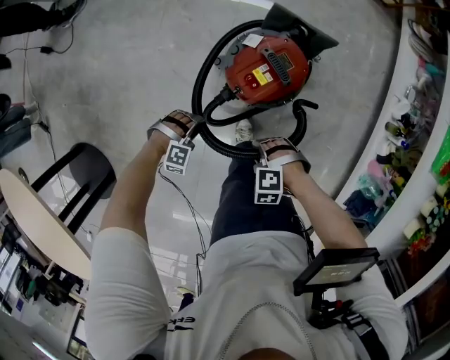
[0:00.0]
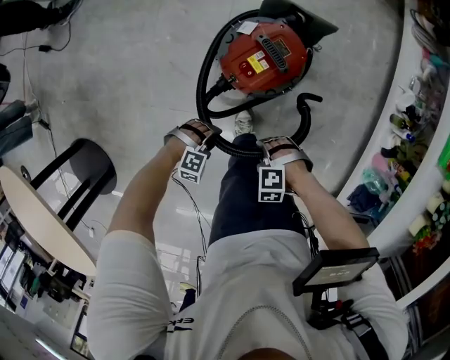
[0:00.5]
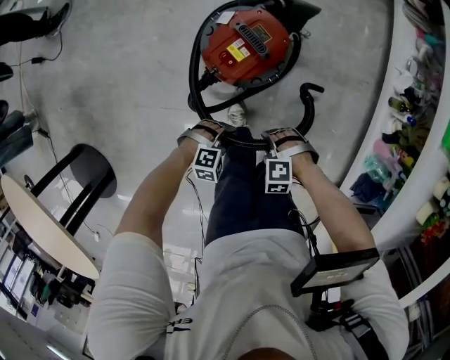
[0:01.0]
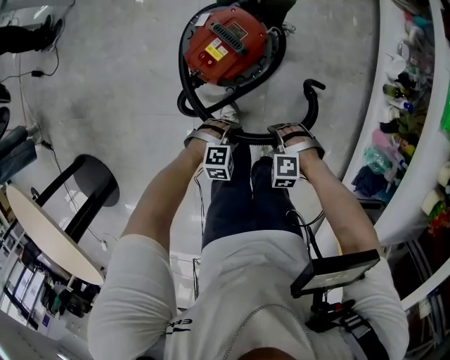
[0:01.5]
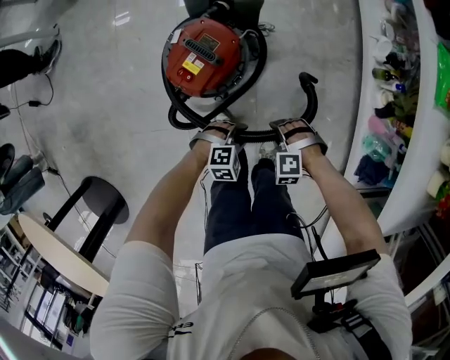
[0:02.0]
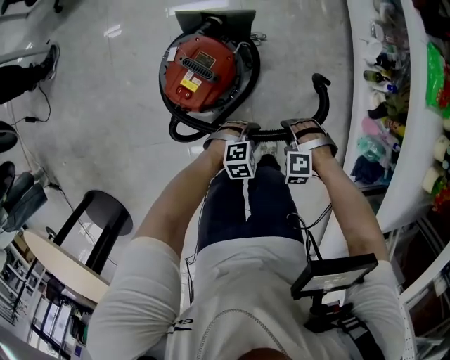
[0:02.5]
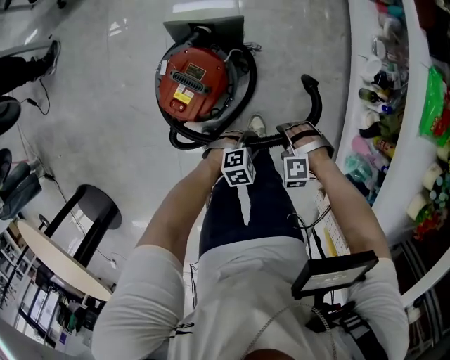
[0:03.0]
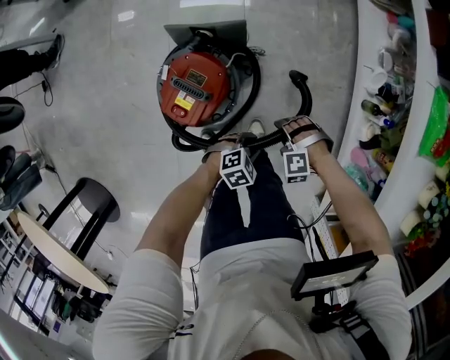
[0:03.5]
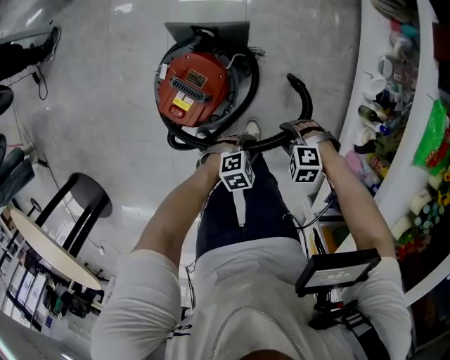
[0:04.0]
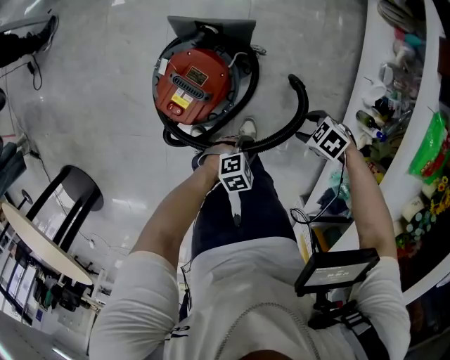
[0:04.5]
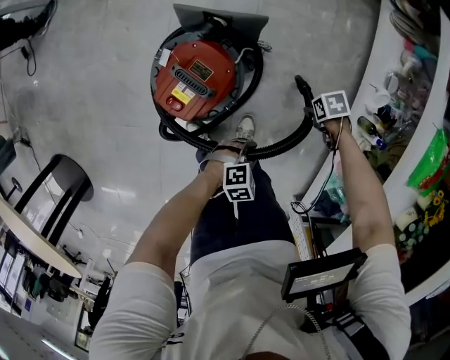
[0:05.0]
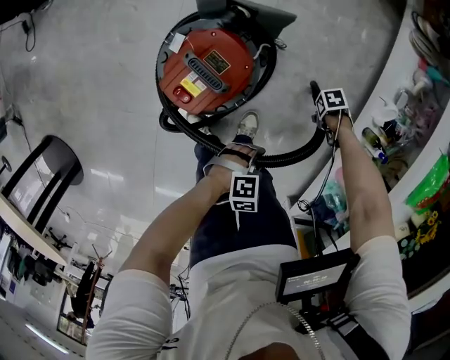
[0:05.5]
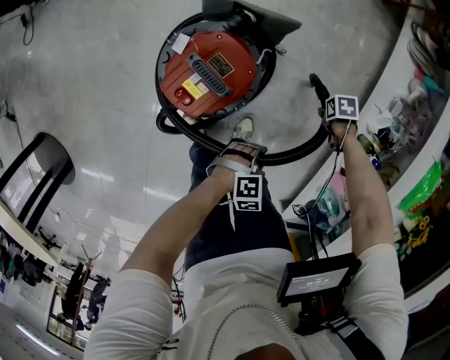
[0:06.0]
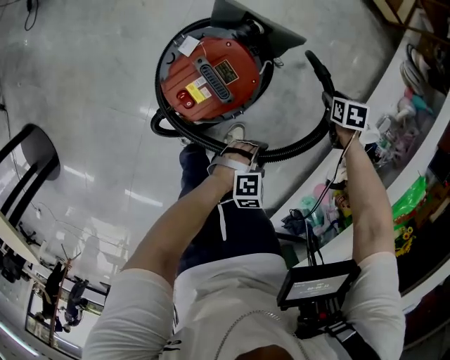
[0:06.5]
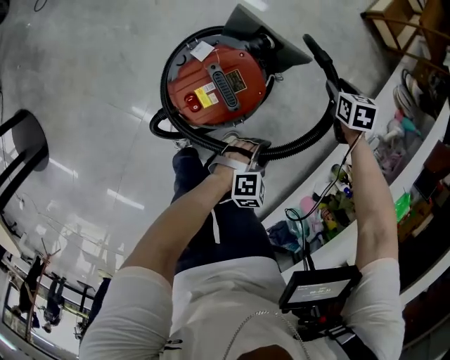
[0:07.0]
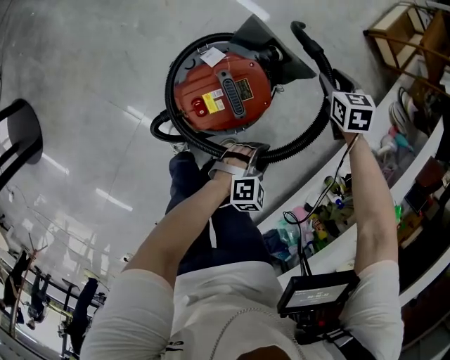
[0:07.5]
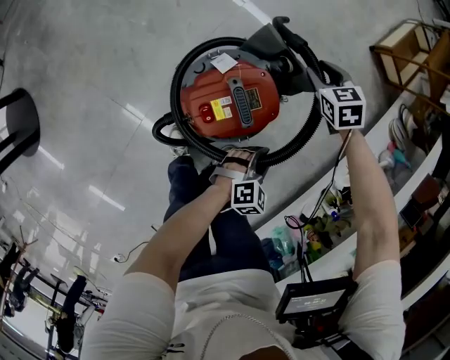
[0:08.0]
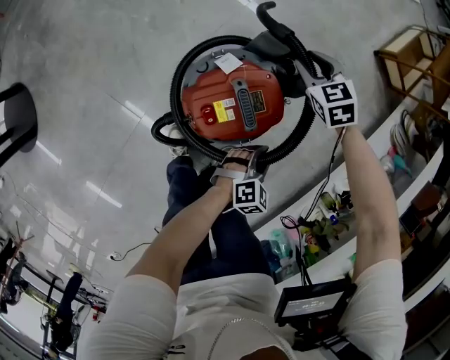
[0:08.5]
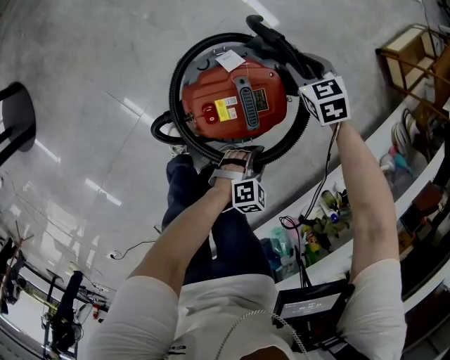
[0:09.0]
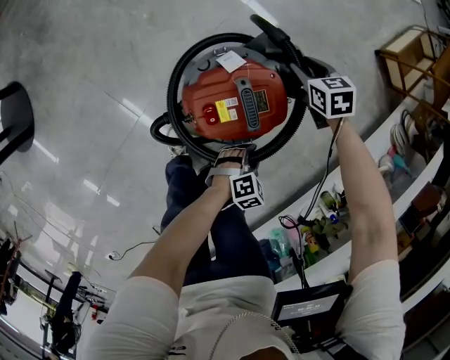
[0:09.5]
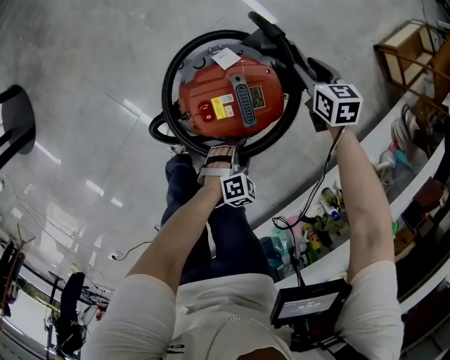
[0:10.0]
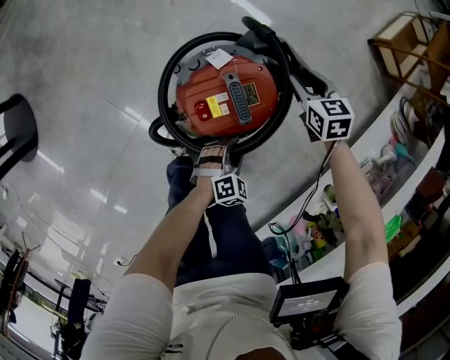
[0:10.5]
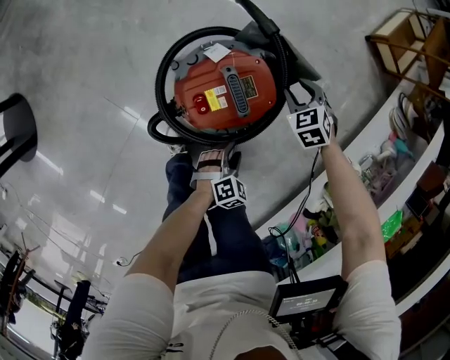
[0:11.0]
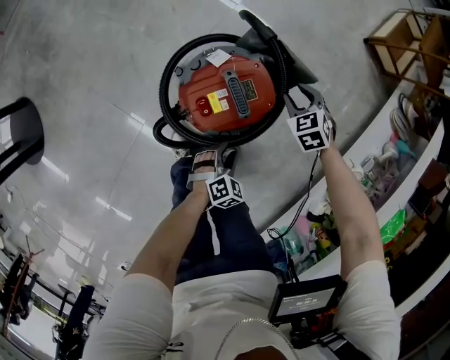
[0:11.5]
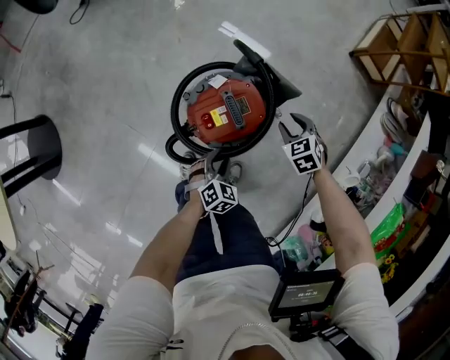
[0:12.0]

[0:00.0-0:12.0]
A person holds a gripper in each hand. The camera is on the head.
0:00.0 to 0:02.0: The right gripper ends up about 20 cm from where it was, while the left gripper changes place by roughly 30 cm, and turns by roughly 20 degrees.
0:02.0 to 0:04.0: The right gripper moves about 20 cm. Meanwhile the left gripper ends up roughly 15 cm from where it was, and turns by roughly 30 degrees.
0:04.0 to 0:06.0: The right gripper moves some 25 cm, and twists some 80 degrees clockwise, seen from behind.
0:06.0 to 0:08.0: The right gripper ends up about 40 cm from where it was, and rotates about 70 degrees. The left gripper ends up approximately 15 cm from where it was, and changes its angle by roughly 40 degrees.
0:08.0 to 0:10.0: The left gripper shifts approximately 10 cm downward and to the left.
0:10.0 to 0:12.0: The left gripper moves upward and to the left, approximately 15 cm. Meanwhile the right gripper moves backward and upward, roughly 15 cm, and swivels approximately 20 degrees.

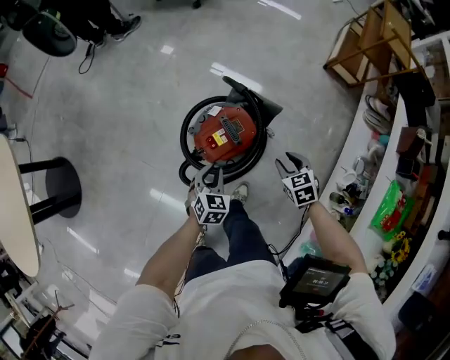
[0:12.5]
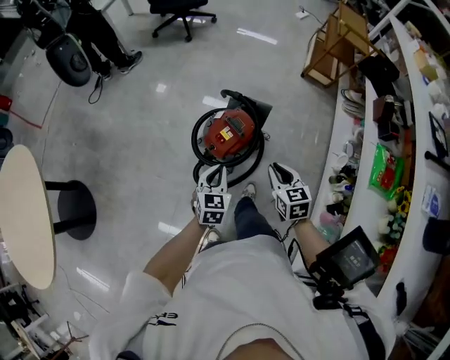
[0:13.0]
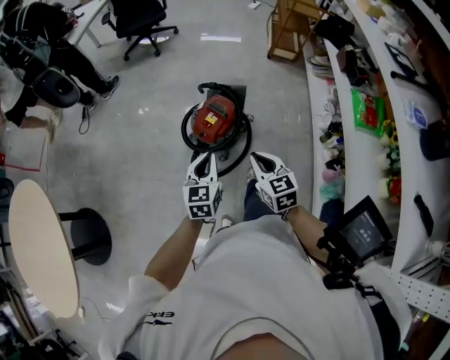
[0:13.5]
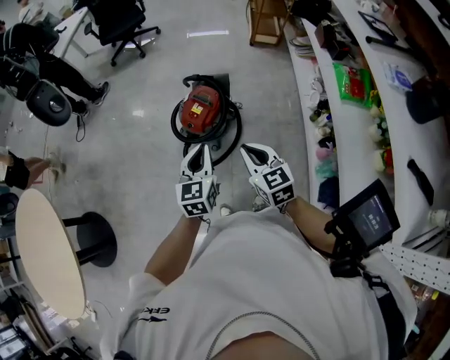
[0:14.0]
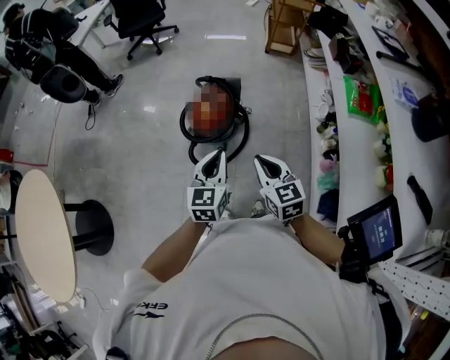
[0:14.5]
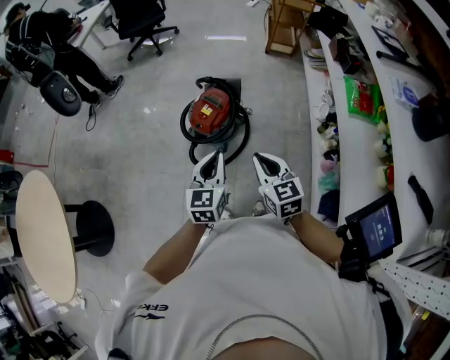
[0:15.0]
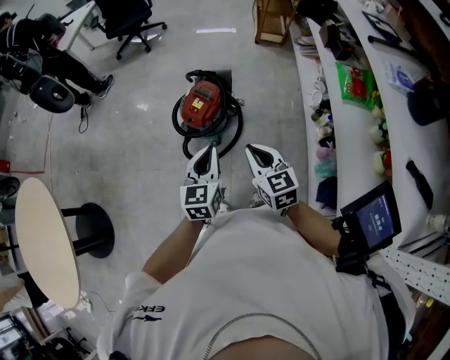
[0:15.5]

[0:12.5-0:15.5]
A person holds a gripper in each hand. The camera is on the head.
0:12.5 to 0:14.0: The left gripper heads upward and backward, covering about 40 cm, and turns by about 30 degrees. Meanwhile the right gripper heads backward and upward, covering approximately 50 cm, angles its fingers upward, by roughly 30 degrees, and closes its fingers.
0:14.0 to 0:15.5: The left gripper moves some 5 cm.

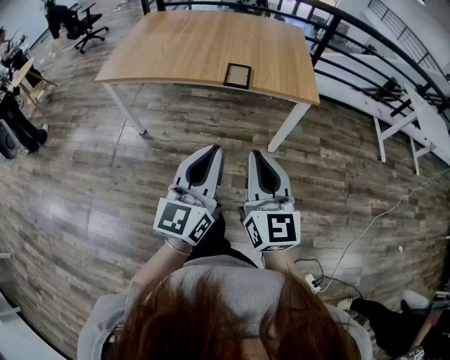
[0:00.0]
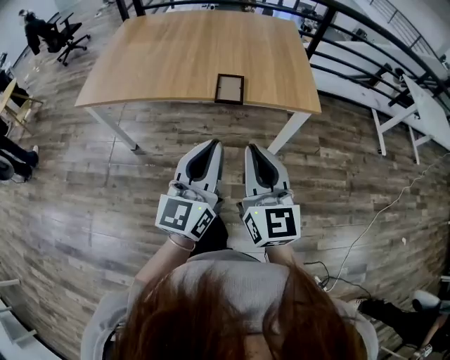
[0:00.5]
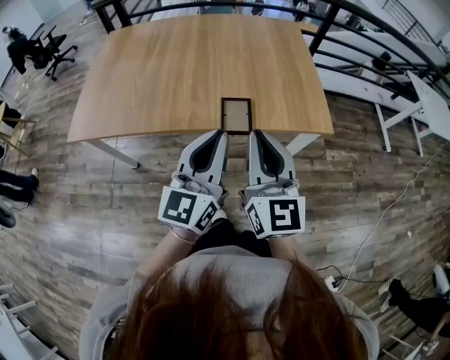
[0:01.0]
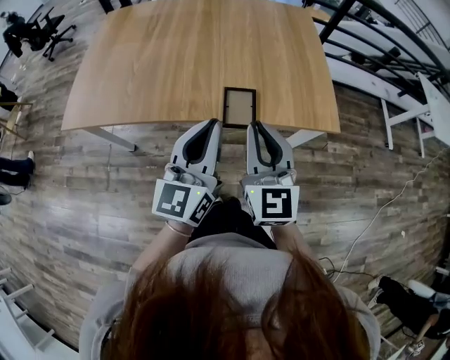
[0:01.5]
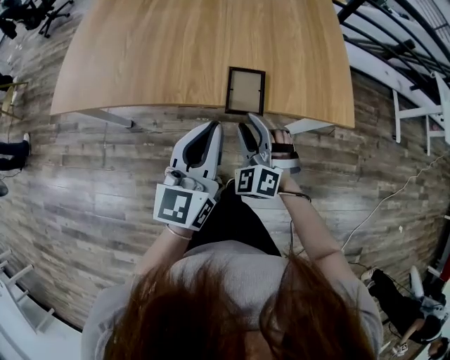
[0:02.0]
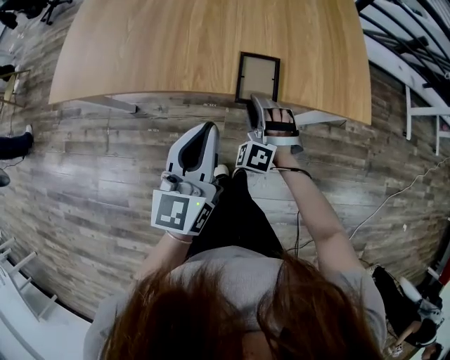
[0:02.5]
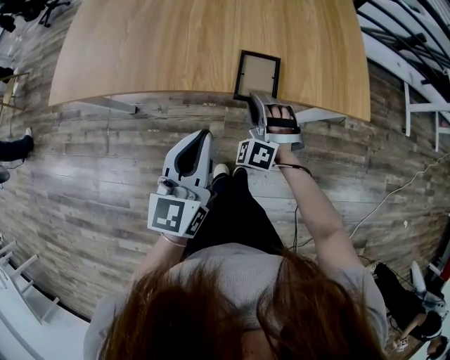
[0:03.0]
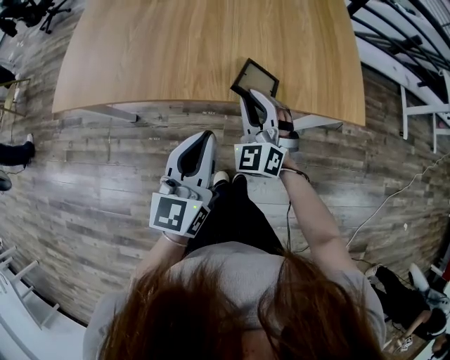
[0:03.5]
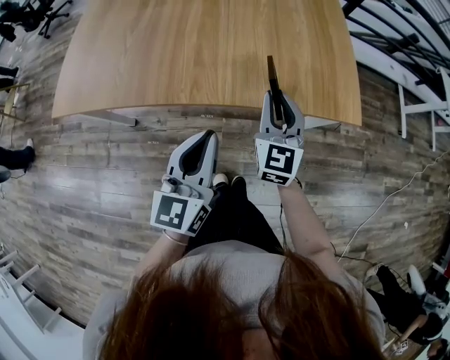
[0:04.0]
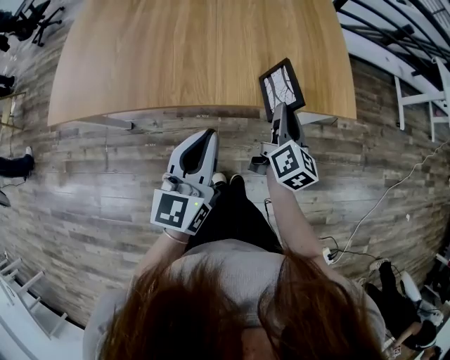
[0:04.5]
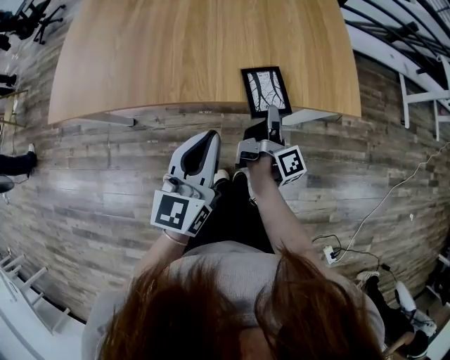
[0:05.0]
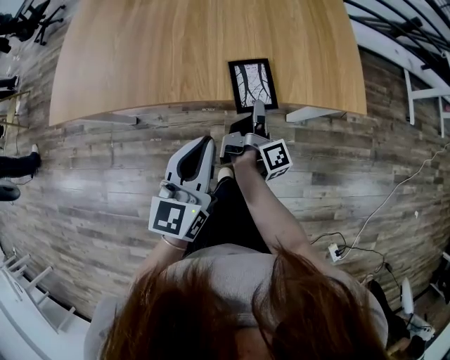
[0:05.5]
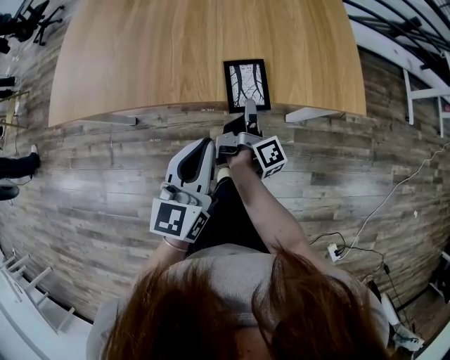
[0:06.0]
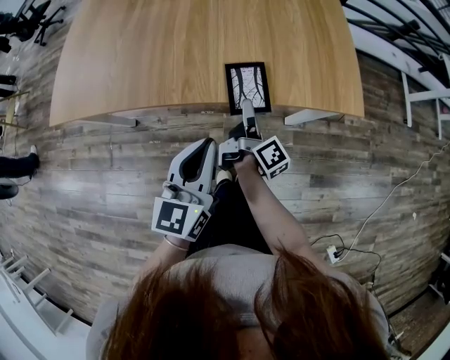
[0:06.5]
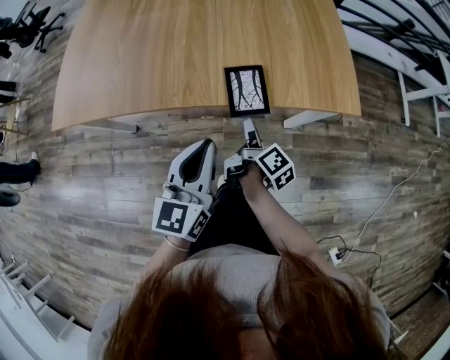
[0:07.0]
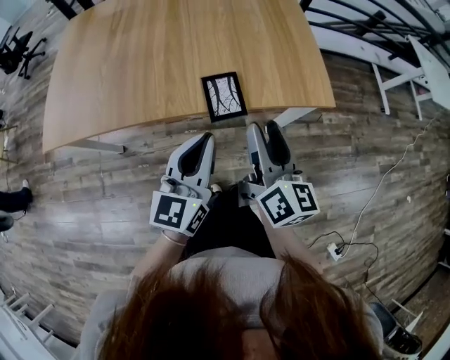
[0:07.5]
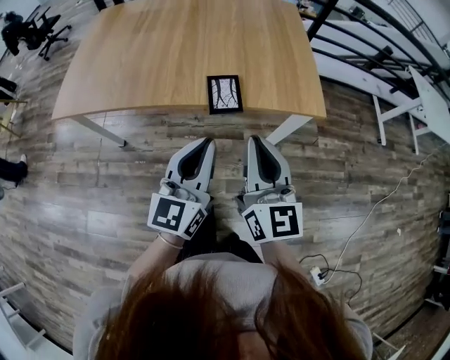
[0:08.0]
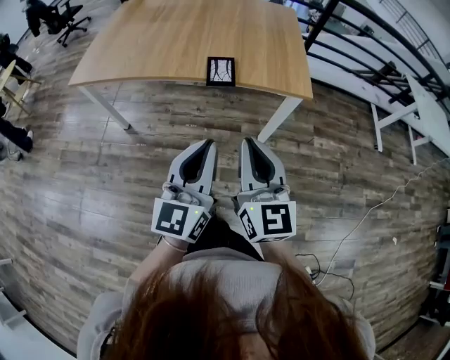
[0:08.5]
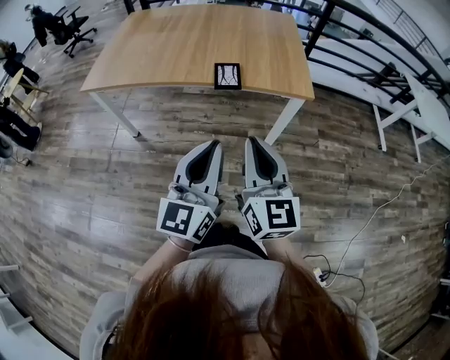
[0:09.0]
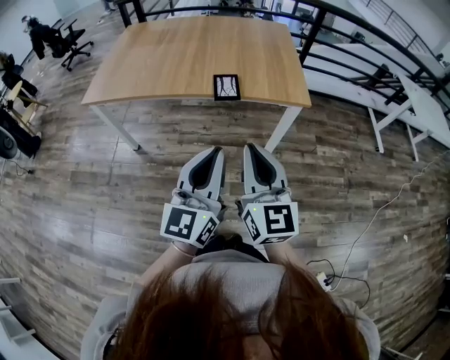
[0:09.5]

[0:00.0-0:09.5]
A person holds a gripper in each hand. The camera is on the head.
0:00.0 to 0:02.0: The left gripper moves forward, about 35 cm. The right gripper shifts roughly 50 cm forward and downward, twists about 60 degrees counterclockwise, seen from behind, and opens up.
0:02.0 to 0:04.0: The right gripper is displaced upward and forward by about 10 cm, and twists approximately 50 degrees clockwise, seen from behind.
0:04.0 to 0:05.5: The right gripper is displaced downward by approximately 15 cm, and rolls clockwise, seen from behind, by roughly 100 degrees.
0:05.5 to 0:07.5: The left gripper shifts by approximately 5 cm. Meanwhile the right gripper moves upward, some 20 cm, twists roughly 60 degrees counterclockwise, seen from behind, and opens.
0:07.5 to 0:09.5: Both grippers move backward, some 30 cm. The right gripper swivels roughly 30 degrees, and closes.

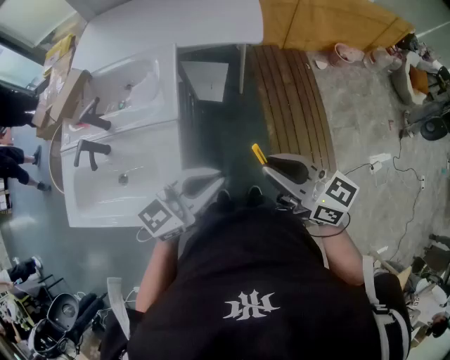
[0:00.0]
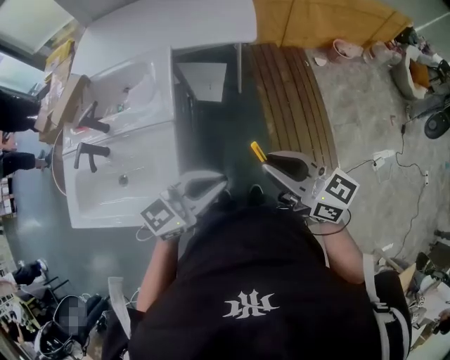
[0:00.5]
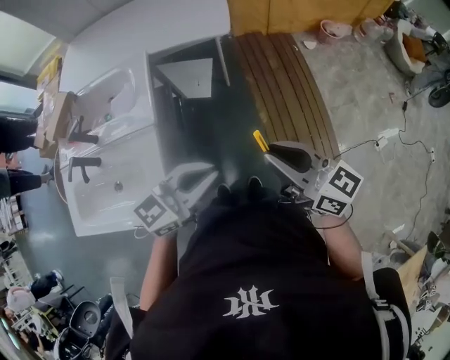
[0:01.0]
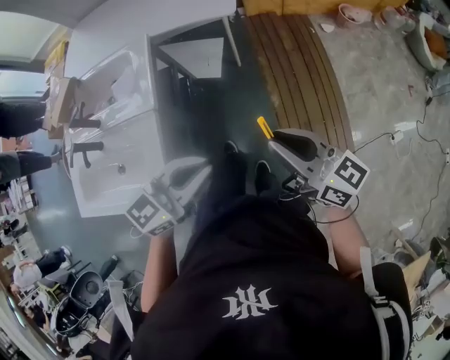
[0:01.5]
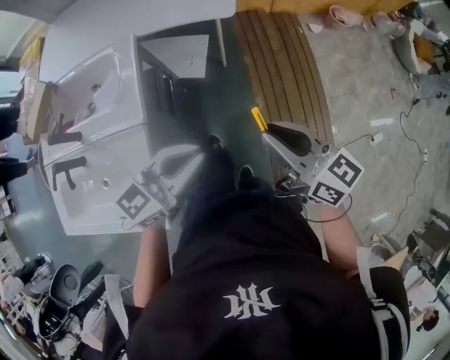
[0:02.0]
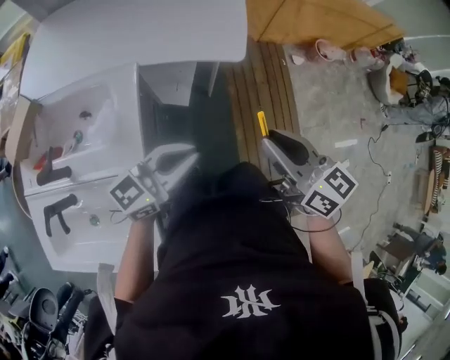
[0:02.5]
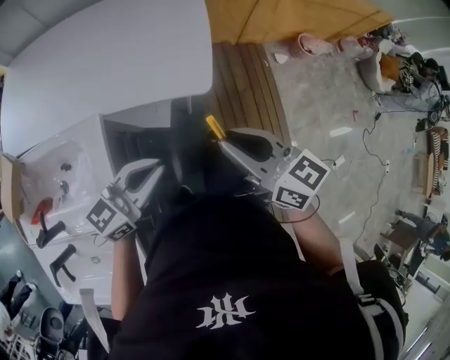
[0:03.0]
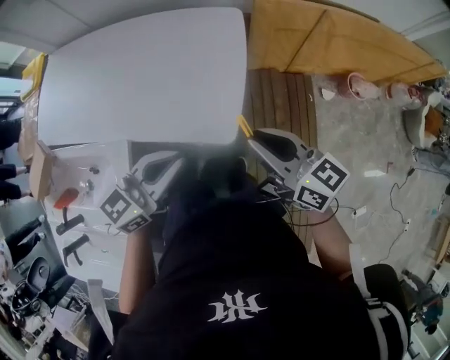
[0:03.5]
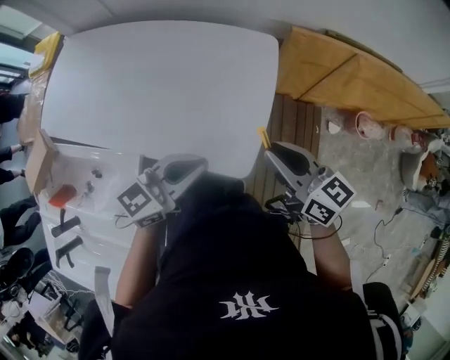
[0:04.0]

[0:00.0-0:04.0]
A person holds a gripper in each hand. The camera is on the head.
0:00.0 to 0:02.0: Both grippers move forward and to the right, approximately 15 cm.
0:02.0 to 0:04.0: The two grippers travel together, forward, about 60 cm.
